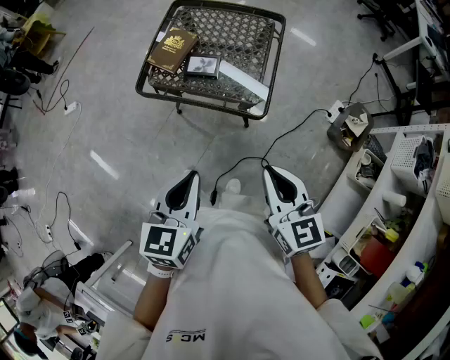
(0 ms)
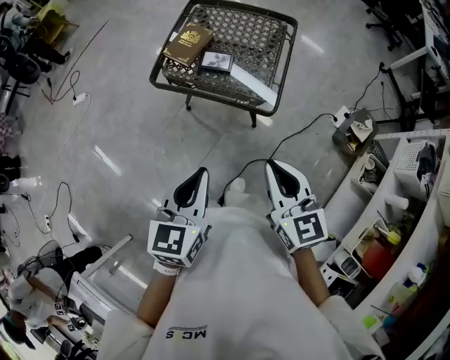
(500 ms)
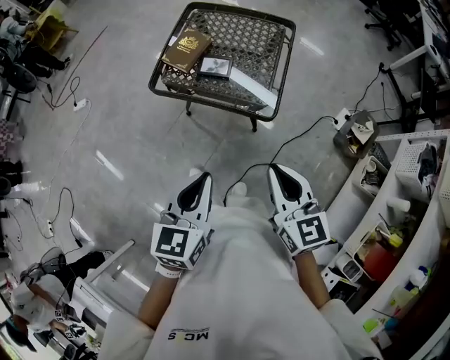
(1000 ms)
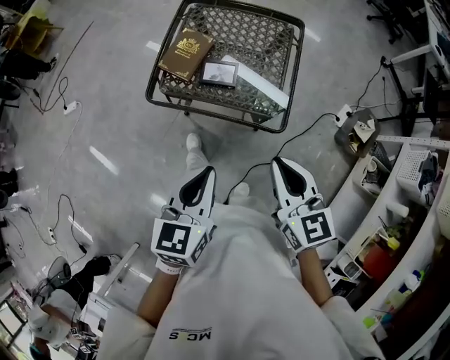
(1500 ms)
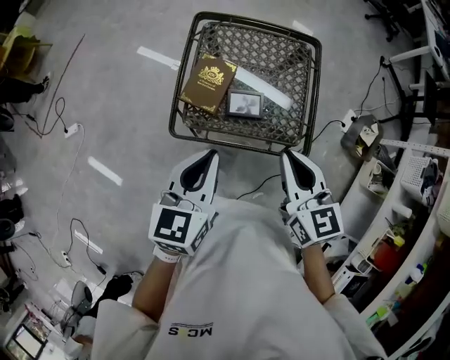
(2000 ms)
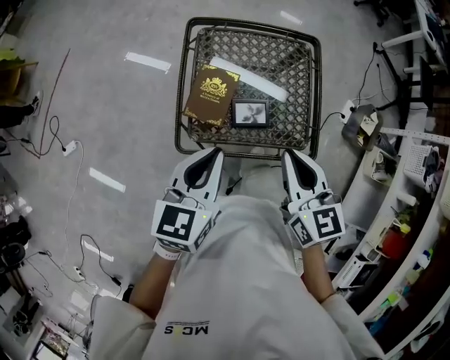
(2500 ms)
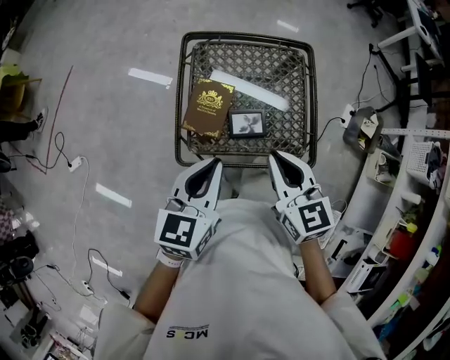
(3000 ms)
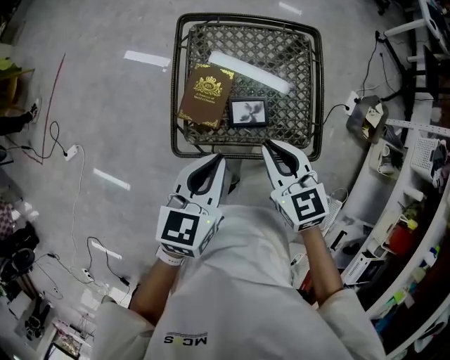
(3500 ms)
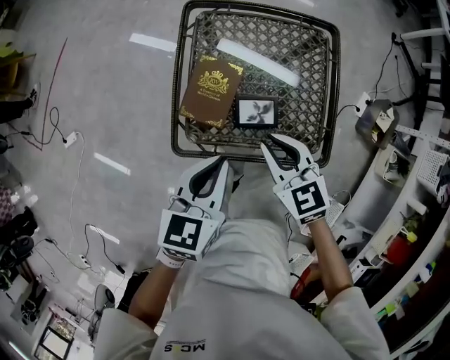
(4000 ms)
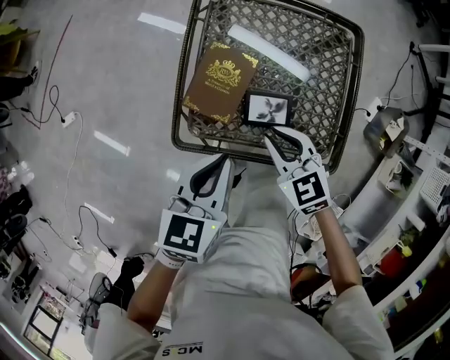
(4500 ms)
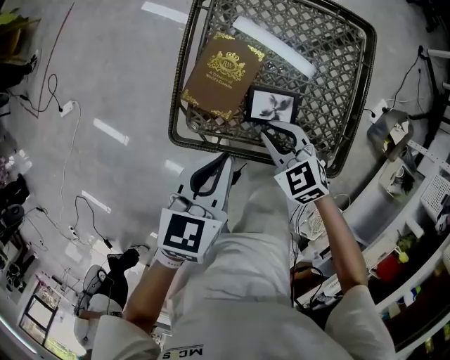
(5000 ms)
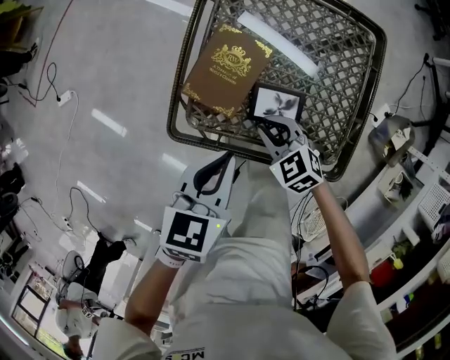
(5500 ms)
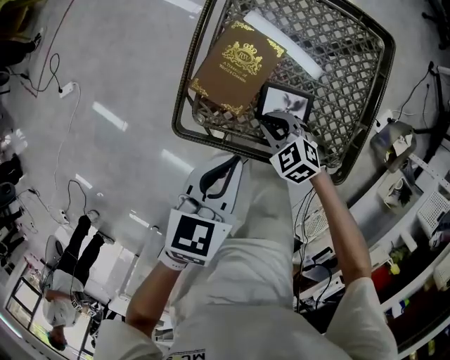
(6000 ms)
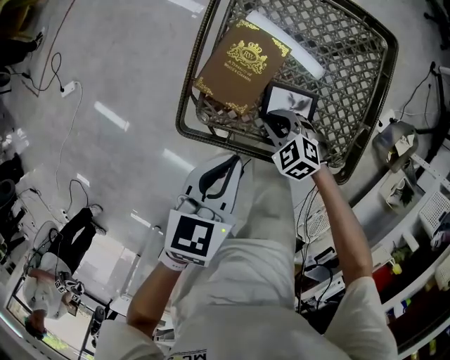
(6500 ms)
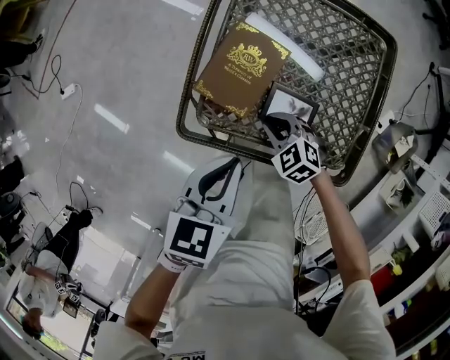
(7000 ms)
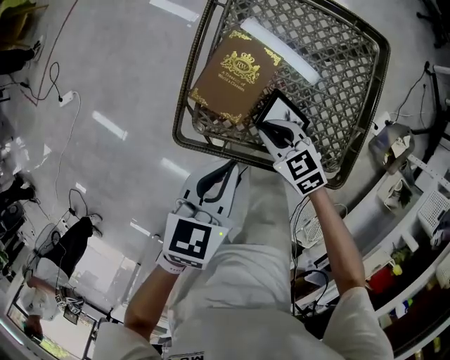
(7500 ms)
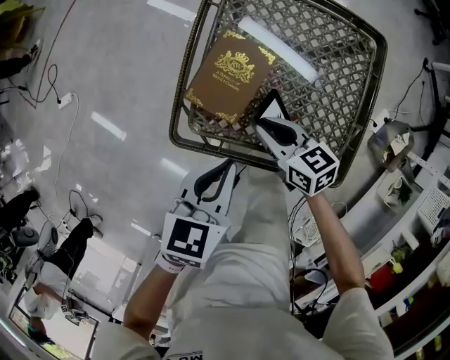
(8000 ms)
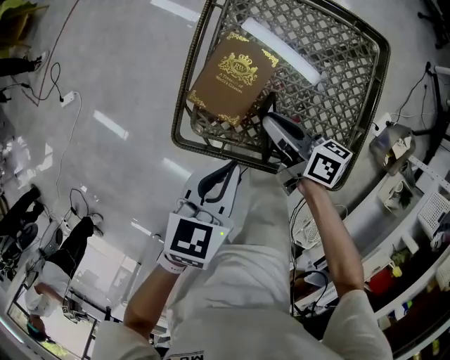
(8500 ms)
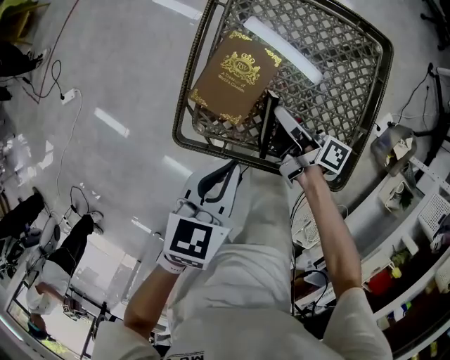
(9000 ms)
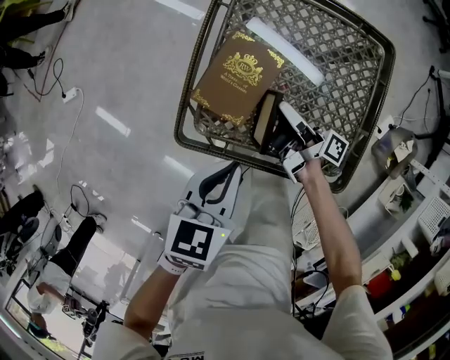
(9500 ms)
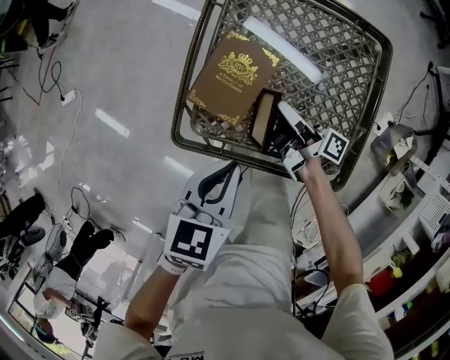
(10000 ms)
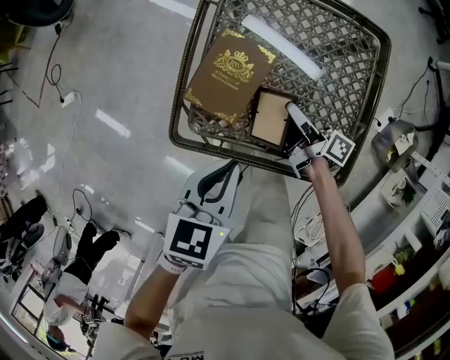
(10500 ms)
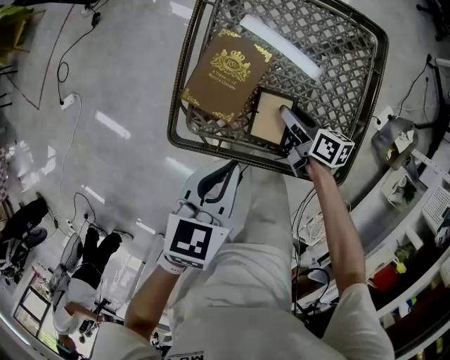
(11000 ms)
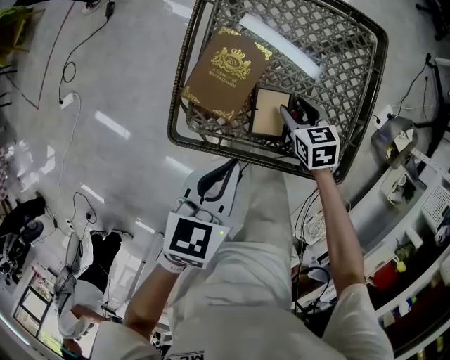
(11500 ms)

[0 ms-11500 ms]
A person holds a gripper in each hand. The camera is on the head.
0 ms to 2000 ms: Both grippers move forward and to the left, about 30 cm.
2000 ms to 4000 ms: The right gripper heads downward, forward and to the left, covering some 20 cm, and rotates some 20 degrees. Meanwhile the left gripper is displaced downward and forward by about 15 cm.
4000 ms to 6000 ms: The left gripper travels downward by some 10 cm; the right gripper is displaced downward by roughly 25 cm, and turns by about 40 degrees.
6000 ms to 7500 ms: The right gripper swivels about 20 degrees.
7500 ms to 9500 ms: The right gripper shifts roughly 5 cm forward, and rolls clockwise, seen from behind, by about 80 degrees.
9500 ms to 11500 ms: The right gripper shifts approximately 10 cm downward and to the right, tilts its fingers roughly 50 degrees downward, and opens its fingers.

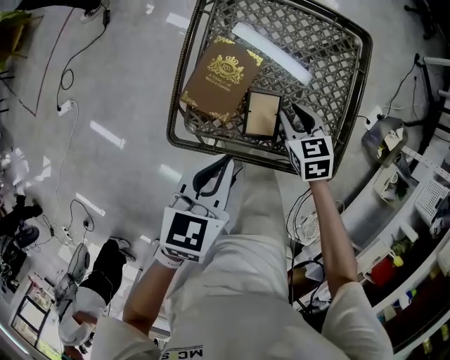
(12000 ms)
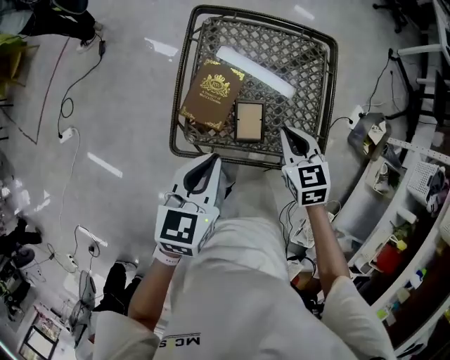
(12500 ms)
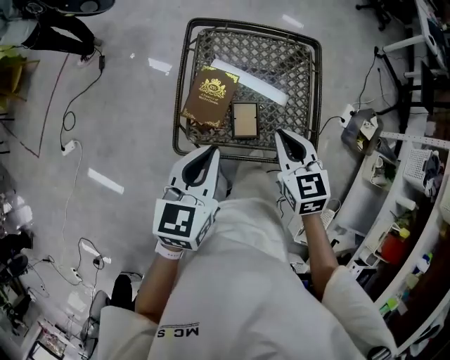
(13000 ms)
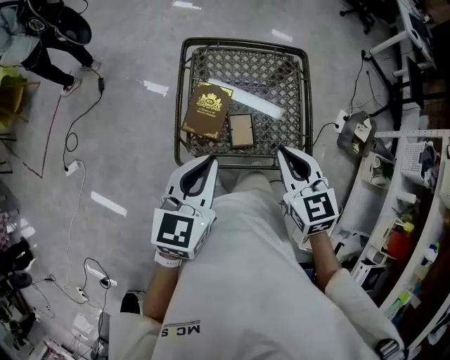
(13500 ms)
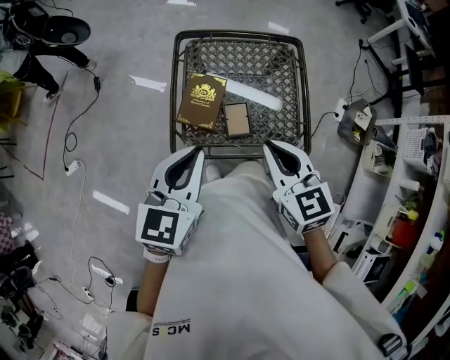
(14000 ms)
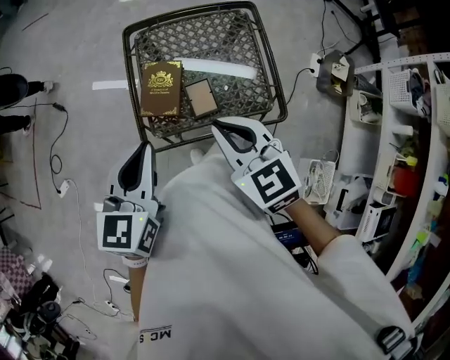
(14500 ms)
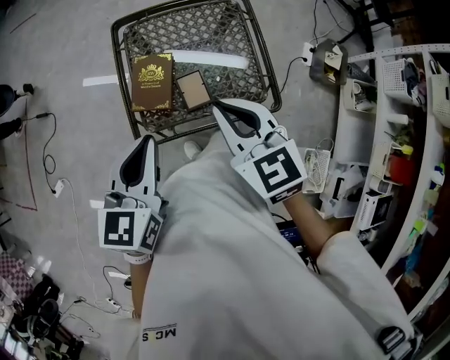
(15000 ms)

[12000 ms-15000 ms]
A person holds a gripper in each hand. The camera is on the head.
12000 ms to 13500 ms: The right gripper goes about 30 cm upward and backward, swivels about 20 degrees, and closes, while the left gripper is displaced upward by some 20 cm, and turns by roughly 20 degrees.
13500 ms to 15000 ms: The grippers make only small movements.

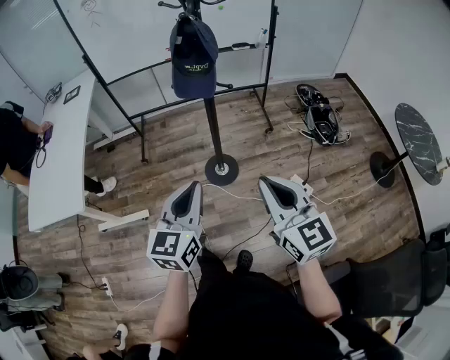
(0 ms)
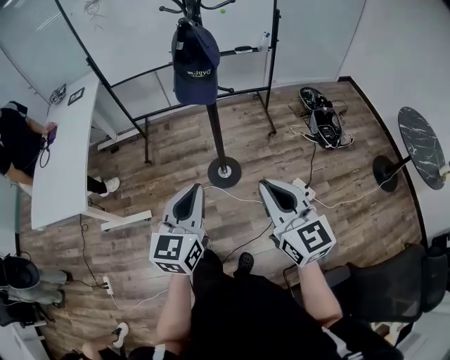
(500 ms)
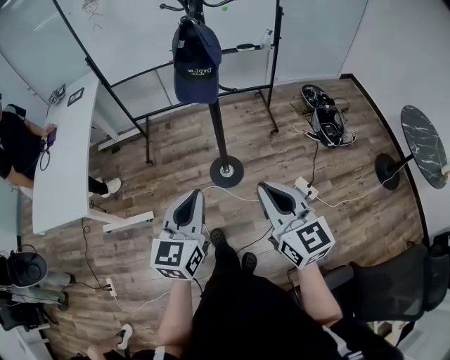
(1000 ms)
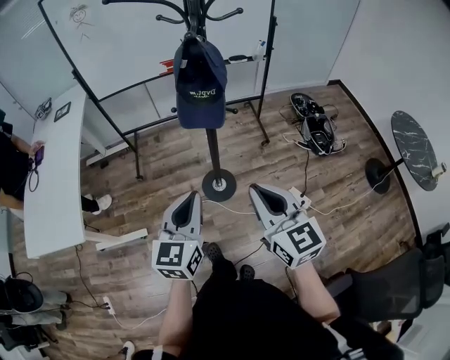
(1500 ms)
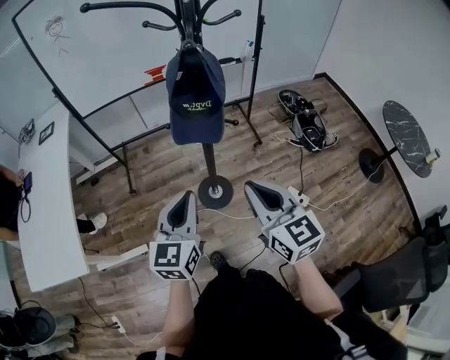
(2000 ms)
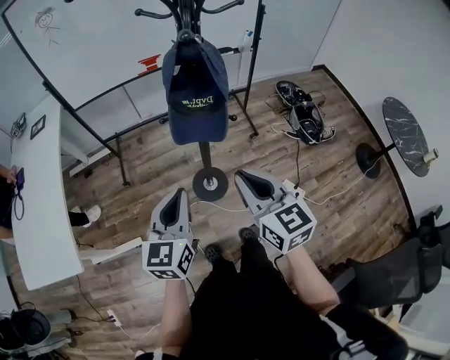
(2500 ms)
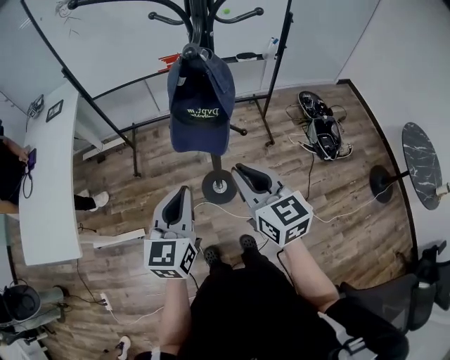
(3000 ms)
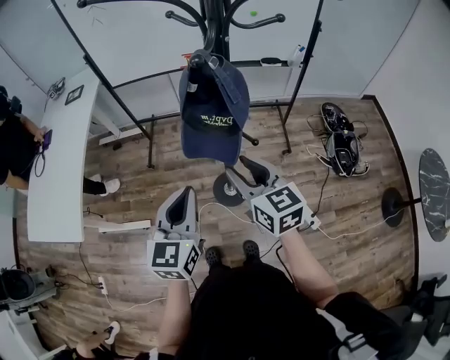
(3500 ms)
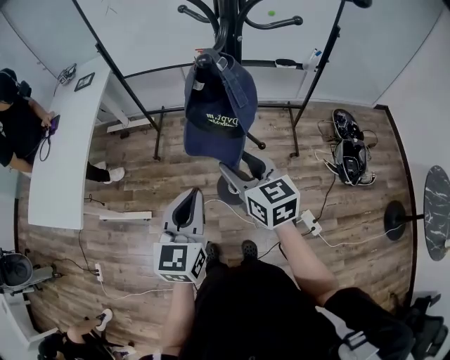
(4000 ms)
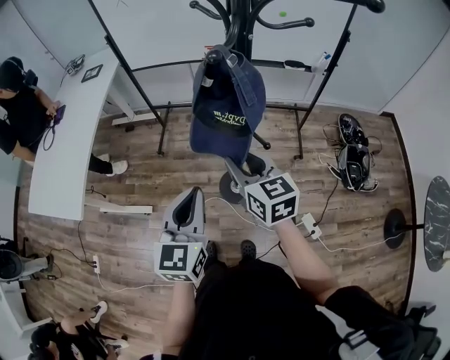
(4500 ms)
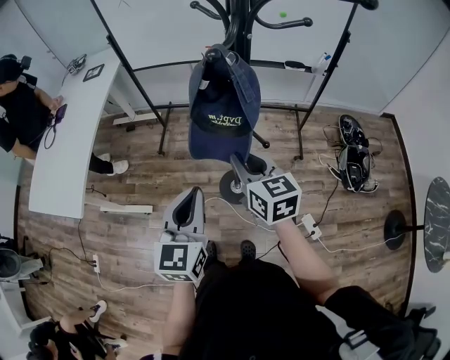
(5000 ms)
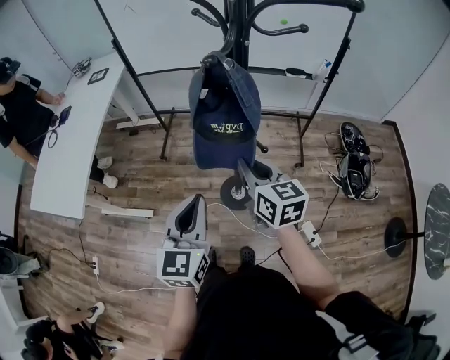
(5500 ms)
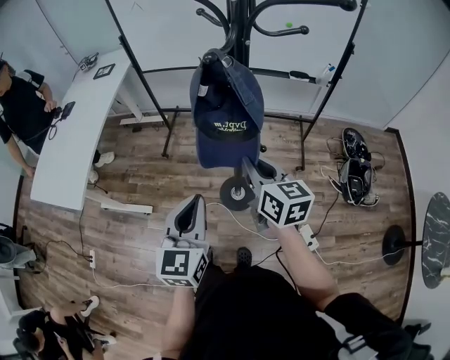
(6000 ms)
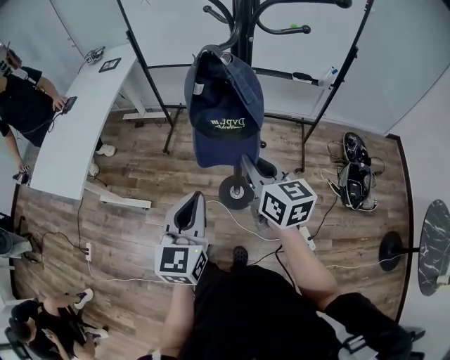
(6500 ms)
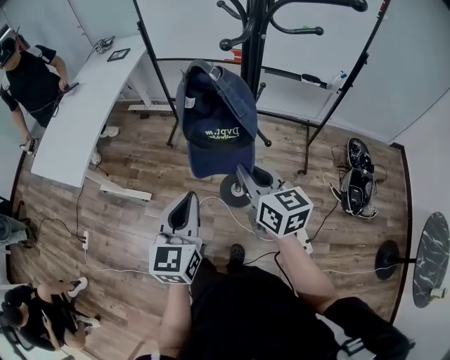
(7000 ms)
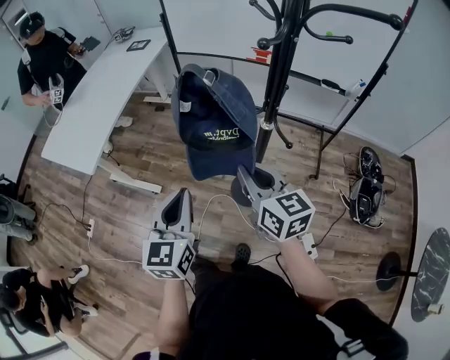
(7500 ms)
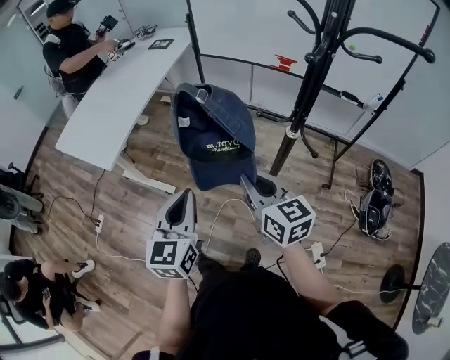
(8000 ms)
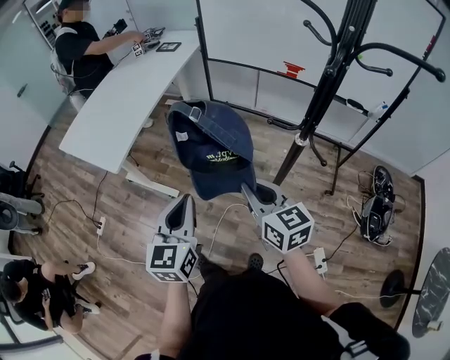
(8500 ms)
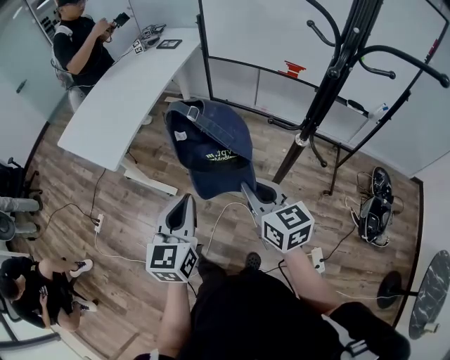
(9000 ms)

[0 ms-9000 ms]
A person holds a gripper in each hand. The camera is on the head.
0 ms to 2000 ms: Both grippers move forward, approximately 15 cm.
2000 ms to 4500 ms: The right gripper moves forward, about 20 cm, rotates some 20 degrees, and opens. The left gripper moves roughly 5 cm, and swivels approximately 20 degrees.
4500 ms to 7000 ms: Both grippers move backward, about 5 cm. The right gripper closes up.
7000 ms to 9000 ms: Both grippers travel together to the left, approximately 15 cm.

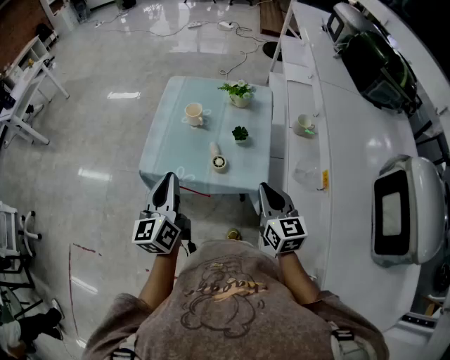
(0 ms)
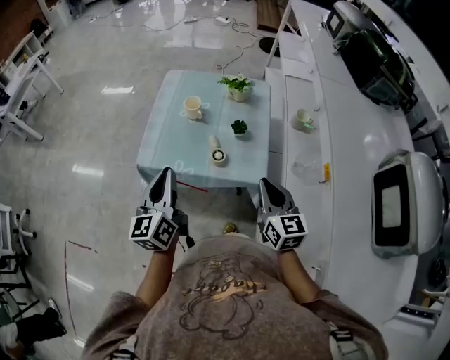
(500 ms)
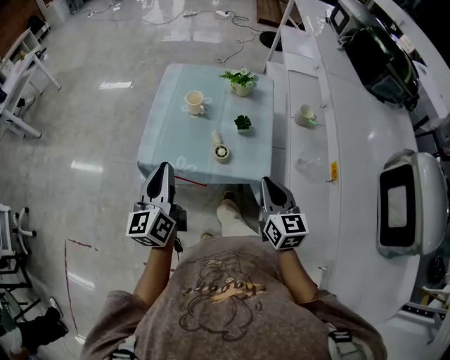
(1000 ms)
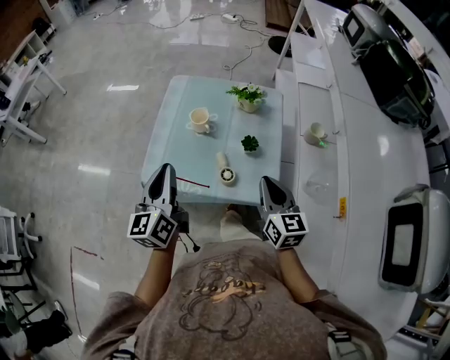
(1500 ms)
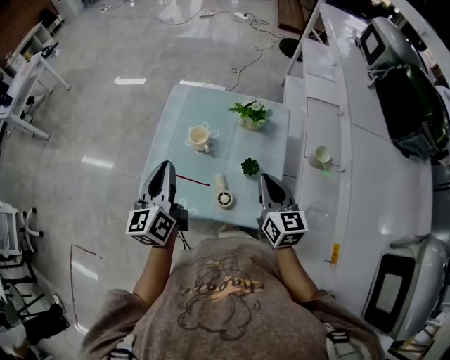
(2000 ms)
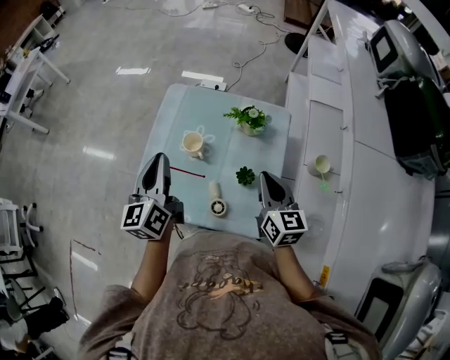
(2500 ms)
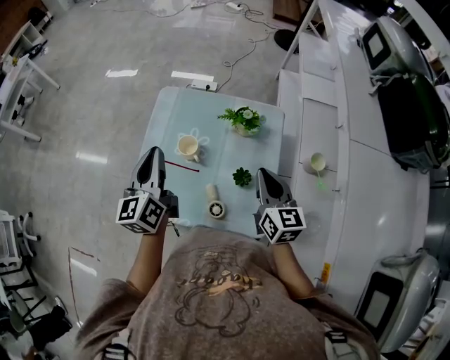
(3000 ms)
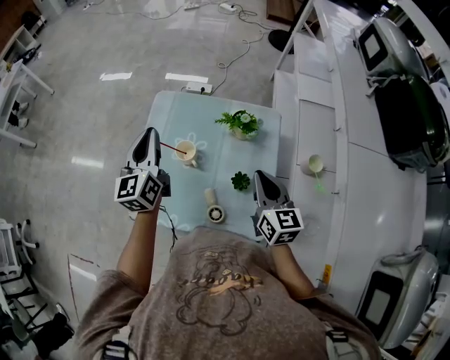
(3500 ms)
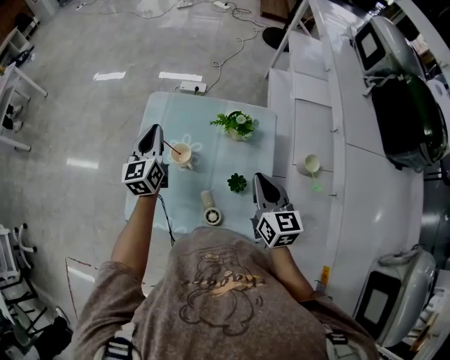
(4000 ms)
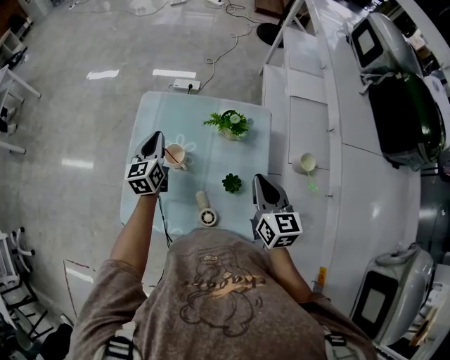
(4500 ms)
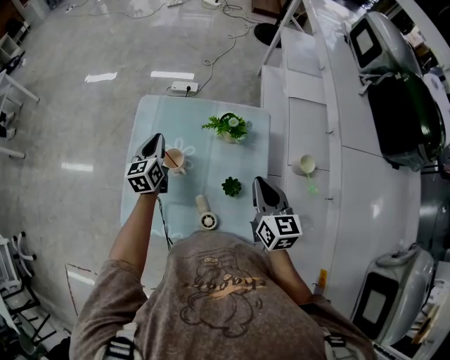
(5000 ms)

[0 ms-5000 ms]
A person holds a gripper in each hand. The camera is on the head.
0 ms to 2500 ms: Both grippers move forward, roughly 30 cm.
2500 ms to 5000 ms: The left gripper is displaced forward and downward by approximately 25 cm, and rotates approximately 20 degrees.
